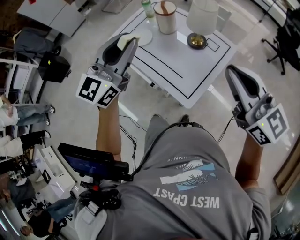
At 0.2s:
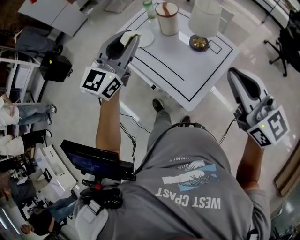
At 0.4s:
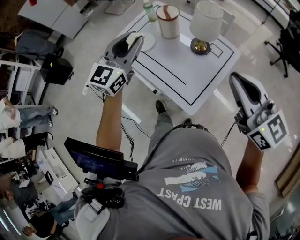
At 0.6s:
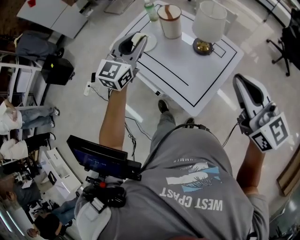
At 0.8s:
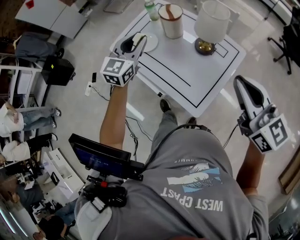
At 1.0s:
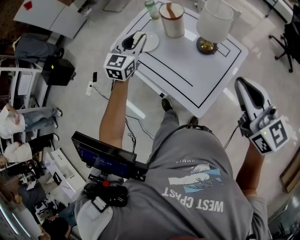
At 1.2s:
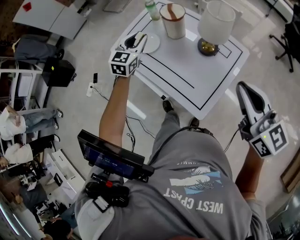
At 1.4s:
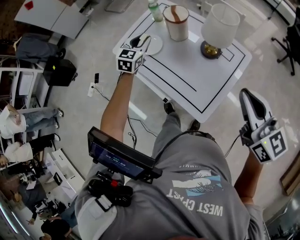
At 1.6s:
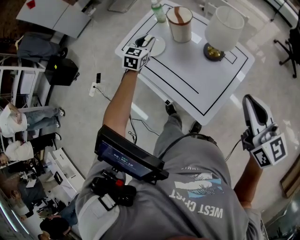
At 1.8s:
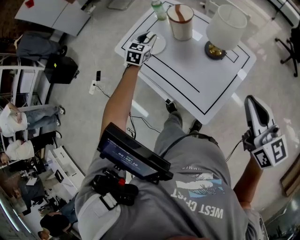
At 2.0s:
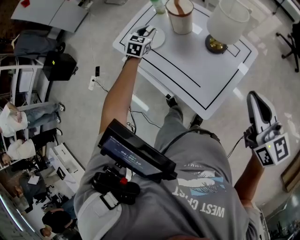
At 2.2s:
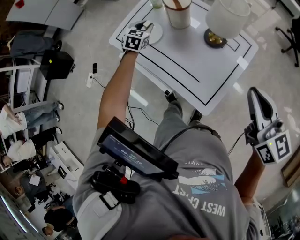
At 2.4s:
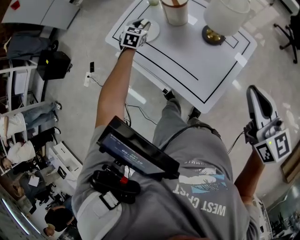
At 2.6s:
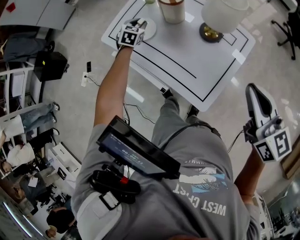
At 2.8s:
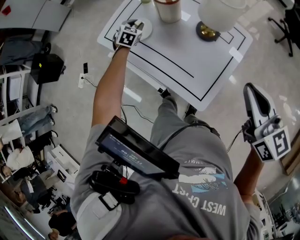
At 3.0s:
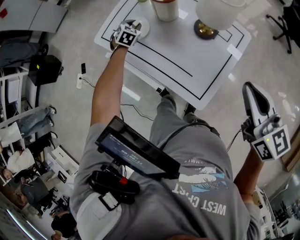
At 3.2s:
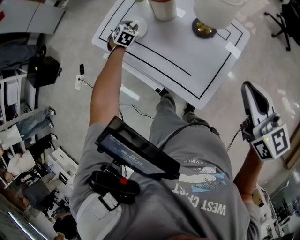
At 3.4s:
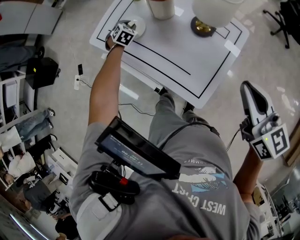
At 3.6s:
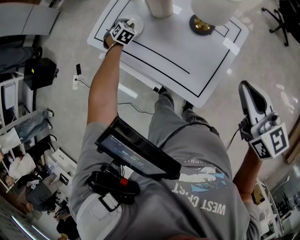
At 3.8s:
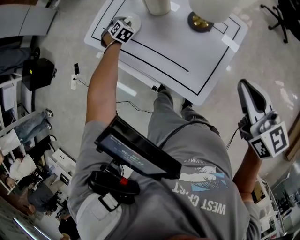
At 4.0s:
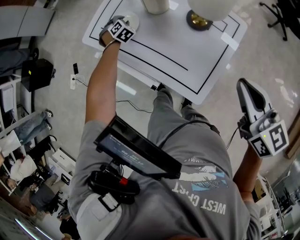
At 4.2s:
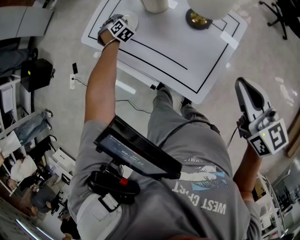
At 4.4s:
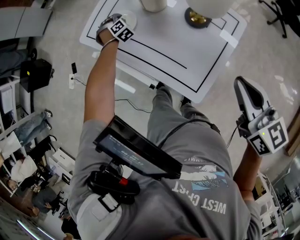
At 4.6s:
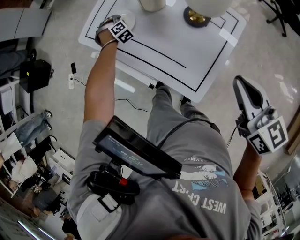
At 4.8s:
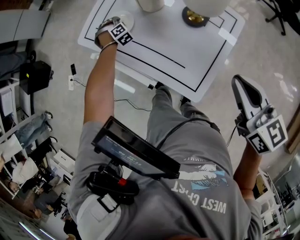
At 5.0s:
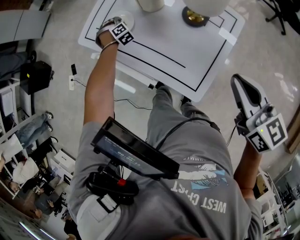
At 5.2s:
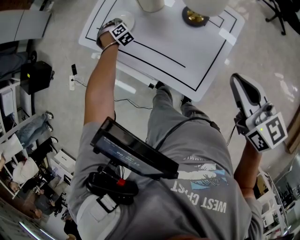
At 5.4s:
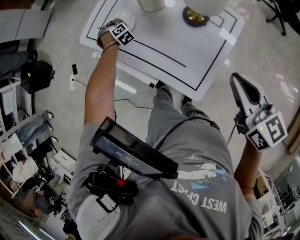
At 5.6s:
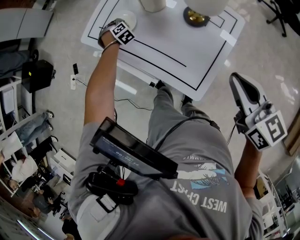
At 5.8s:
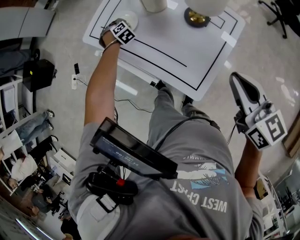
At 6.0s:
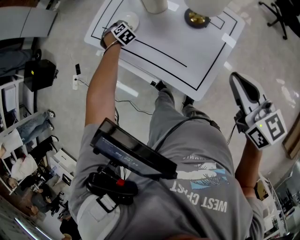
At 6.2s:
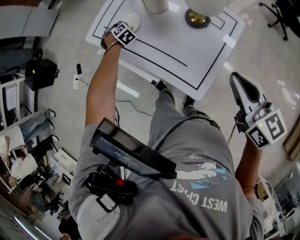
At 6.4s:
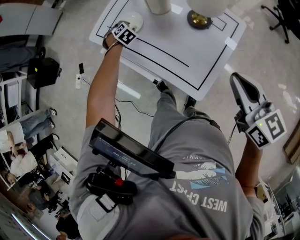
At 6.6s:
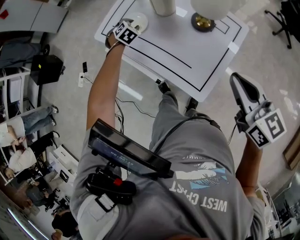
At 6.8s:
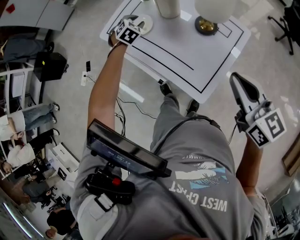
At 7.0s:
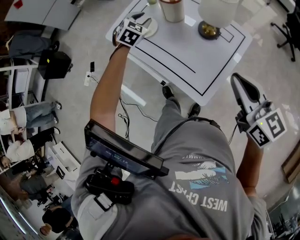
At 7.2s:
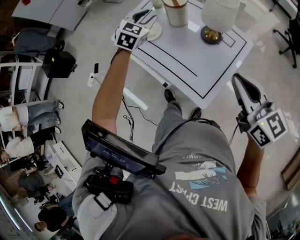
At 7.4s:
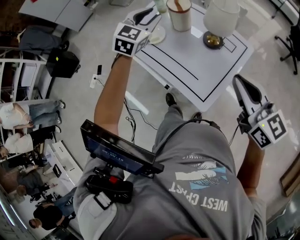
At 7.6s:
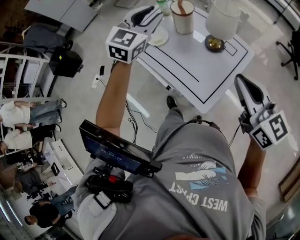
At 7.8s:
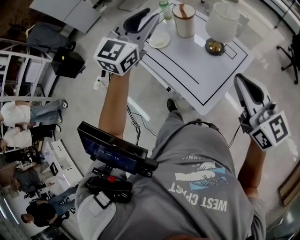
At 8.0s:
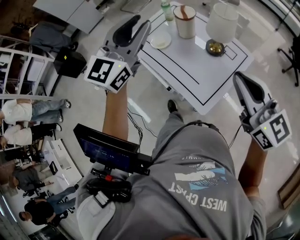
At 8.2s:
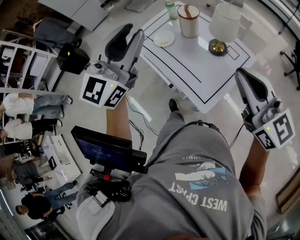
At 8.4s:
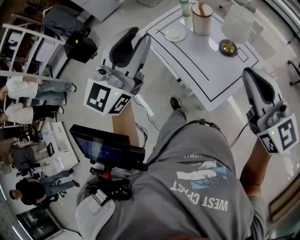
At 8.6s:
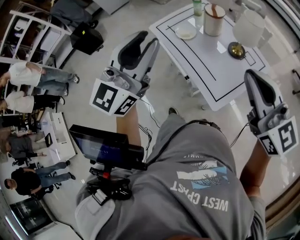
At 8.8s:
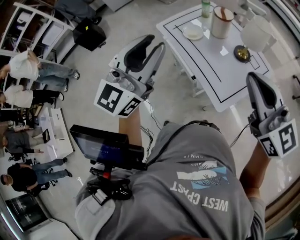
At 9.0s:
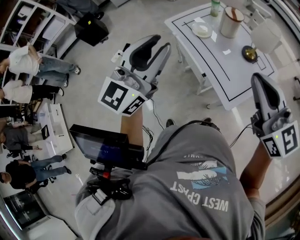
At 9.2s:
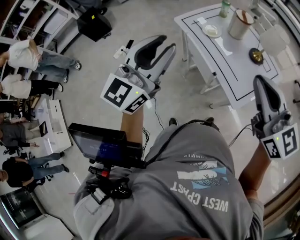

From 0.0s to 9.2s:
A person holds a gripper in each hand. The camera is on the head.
From 0.0s to 1.6s: The right gripper shifts about 10 cm downward and forward, while the left gripper travels downward and forward by some 40 cm, and points its fingers some 30 degrees further downward.
From 1.6s to 3.0s: The left gripper travels downward by approximately 15 cm, and swivels approximately 30 degrees.
From 3.0s to 4.6s: The left gripper moves downward, about 5 cm, and changes its angle by approximately 40 degrees.
From 4.6s to 6.2s: The left gripper goes some 5 cm backward.
From 6.2s to 7.6s: The right gripper goes approximately 10 cm upward; the left gripper shifts about 40 cm upward, and points its fingers roughly 50 degrees further upward.
From 7.6s to 9.2s: The right gripper is displaced to the left and backward by about 25 cm, while the left gripper heads backward and to the left, covering some 40 cm, and rotates some 30 degrees.

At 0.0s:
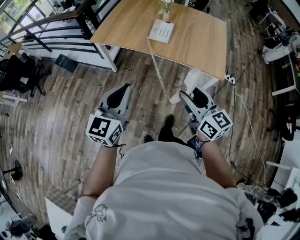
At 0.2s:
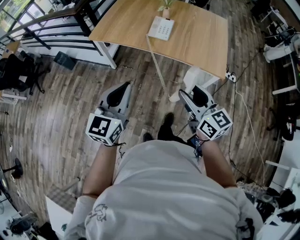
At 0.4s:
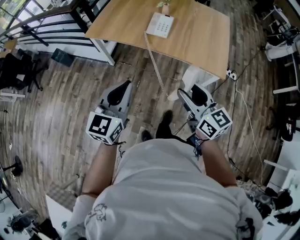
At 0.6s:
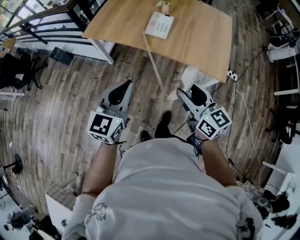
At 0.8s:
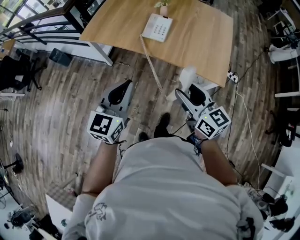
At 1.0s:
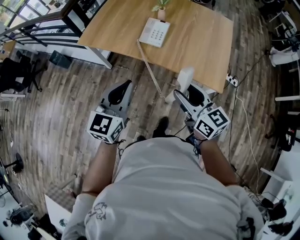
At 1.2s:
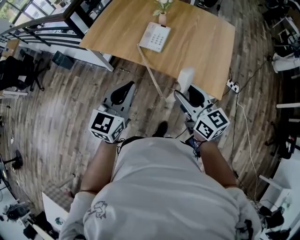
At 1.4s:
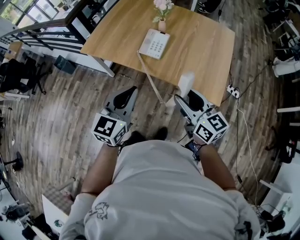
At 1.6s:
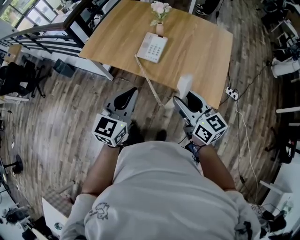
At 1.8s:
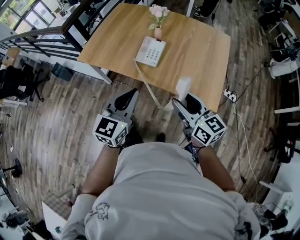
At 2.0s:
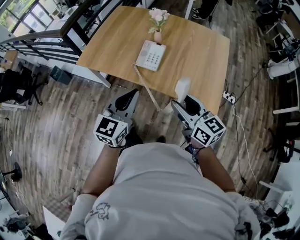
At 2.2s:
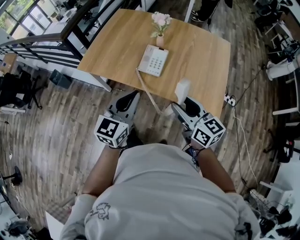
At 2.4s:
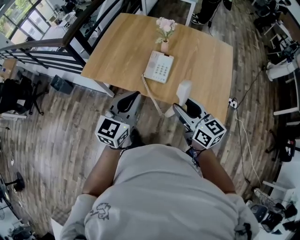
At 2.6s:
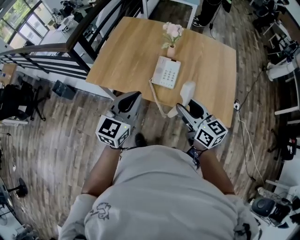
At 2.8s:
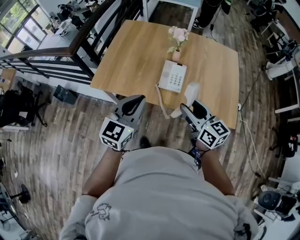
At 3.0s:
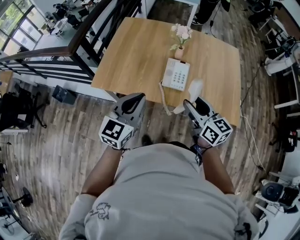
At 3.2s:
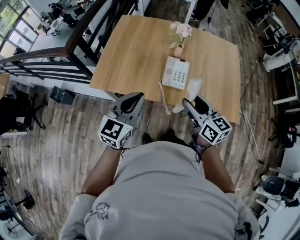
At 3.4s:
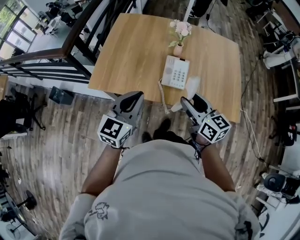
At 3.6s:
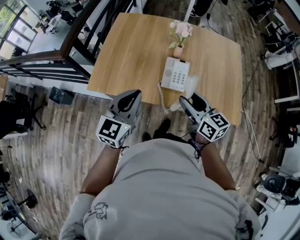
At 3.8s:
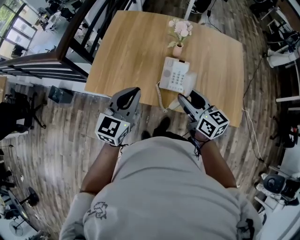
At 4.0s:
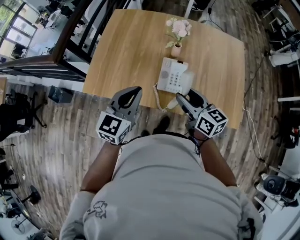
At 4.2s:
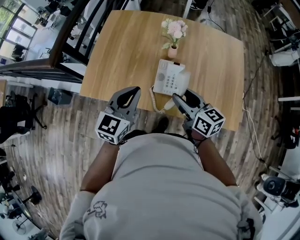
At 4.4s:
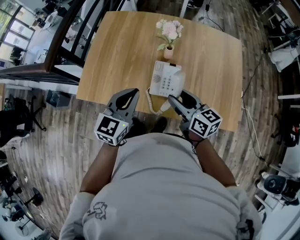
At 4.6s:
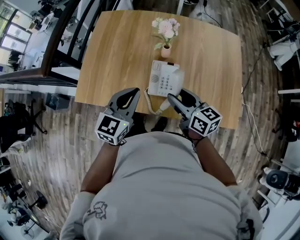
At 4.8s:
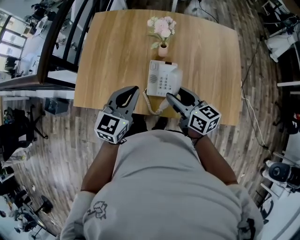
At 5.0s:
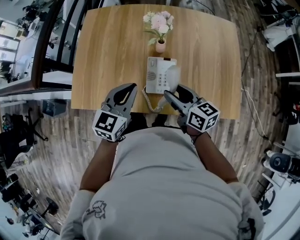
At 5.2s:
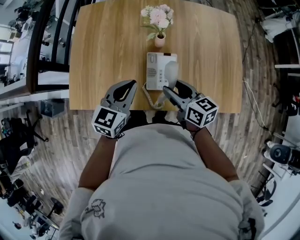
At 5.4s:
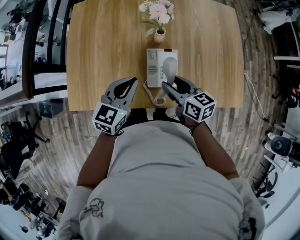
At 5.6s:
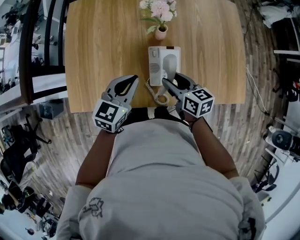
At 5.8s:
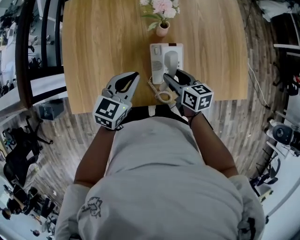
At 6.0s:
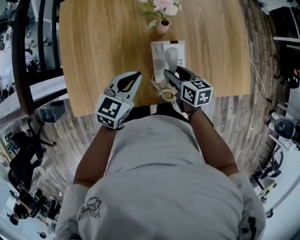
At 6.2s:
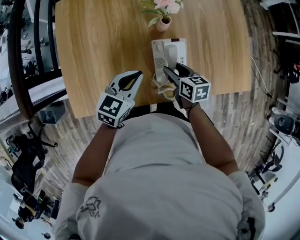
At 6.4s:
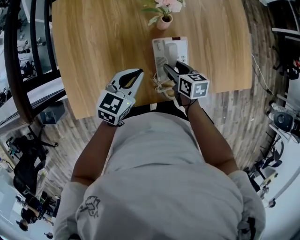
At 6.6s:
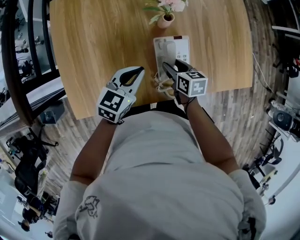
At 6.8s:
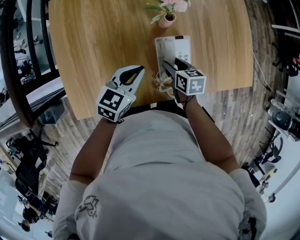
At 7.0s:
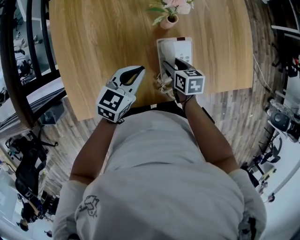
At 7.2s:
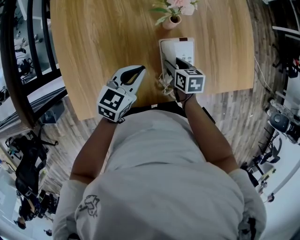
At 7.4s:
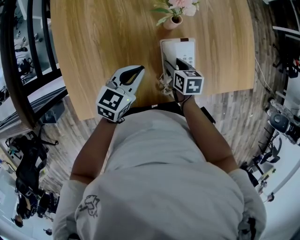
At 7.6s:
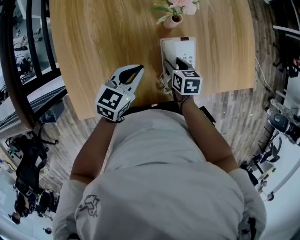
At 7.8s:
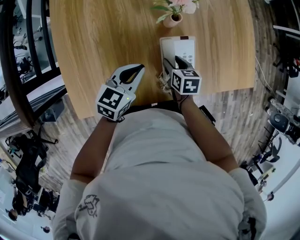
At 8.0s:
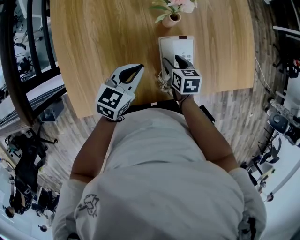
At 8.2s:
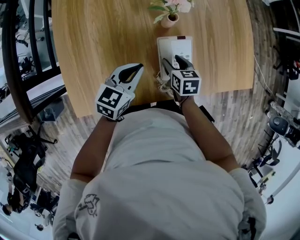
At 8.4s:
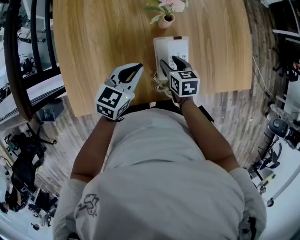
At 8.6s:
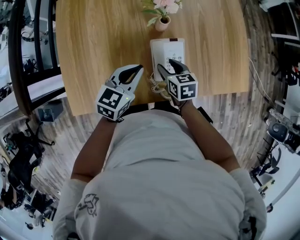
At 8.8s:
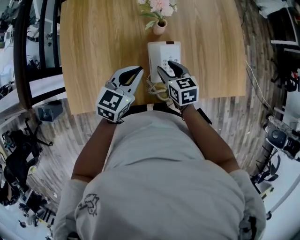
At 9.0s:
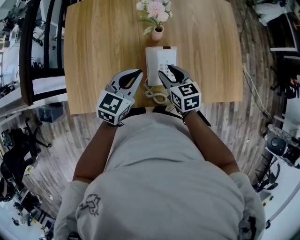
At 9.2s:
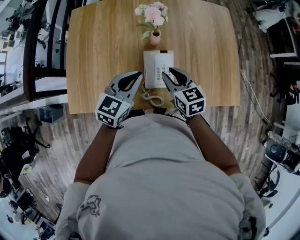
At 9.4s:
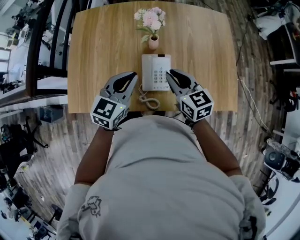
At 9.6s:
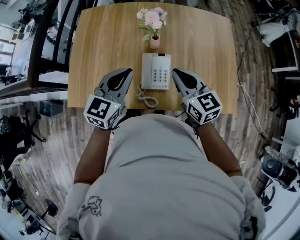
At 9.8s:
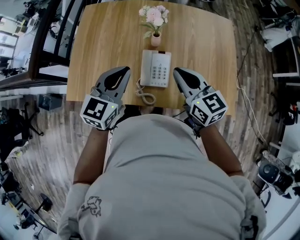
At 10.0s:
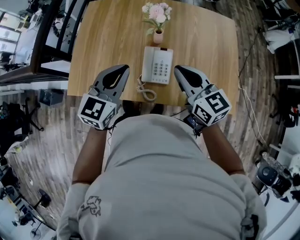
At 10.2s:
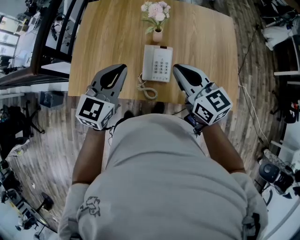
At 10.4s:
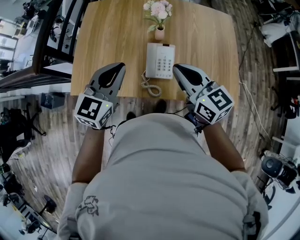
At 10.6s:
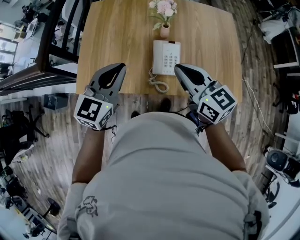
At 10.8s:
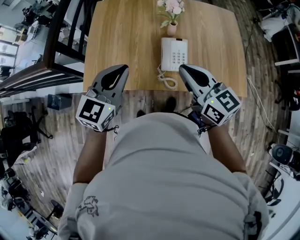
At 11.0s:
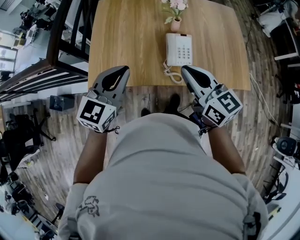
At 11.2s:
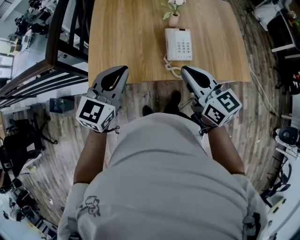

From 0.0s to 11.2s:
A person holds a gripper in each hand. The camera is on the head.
From 0.0s to 1.6s: Both grippers travel together forward and to the right, some 25 cm.
From 1.6s to 3.2s: The grippers both shift to the left and forward by about 25 cm.
From 3.2s to 4.8s: The right gripper travels forward and downward by roughly 15 cm. Meanwhile the left gripper moves forward and to the right, about 20 cm.
From 4.8s to 6.4s: Both grippers travel together downward and forward, some 20 cm. The right gripper swivels roughly 40 degrees, while the left gripper rotates roughly 30 degrees.
From 6.4s to 8.0s: The grippers stay close to where they were, moving slightly.
From 8.0s to 9.6s: The left gripper goes about 20 cm upward and to the right, and swivels some 30 degrees. The right gripper travels upward by roughly 25 cm, tips its fingers upward by about 30 degrees, and closes up.
From 9.6s to 11.2s: The left gripper is displaced to the left and backward by roughly 25 cm; the right gripper travels backward and to the left by some 25 cm.

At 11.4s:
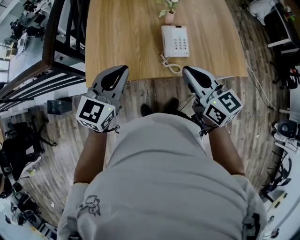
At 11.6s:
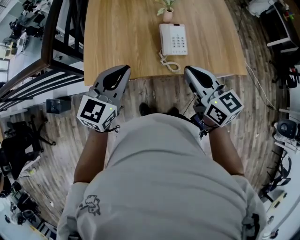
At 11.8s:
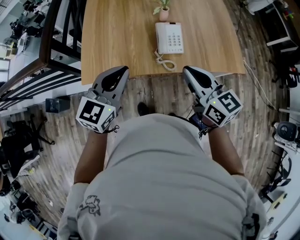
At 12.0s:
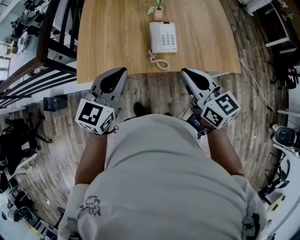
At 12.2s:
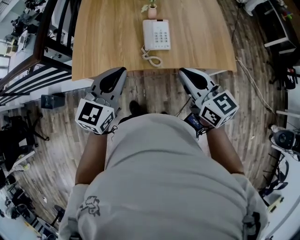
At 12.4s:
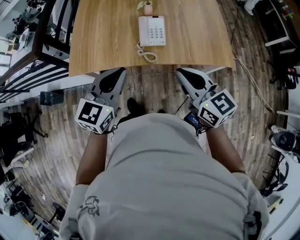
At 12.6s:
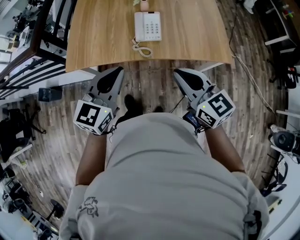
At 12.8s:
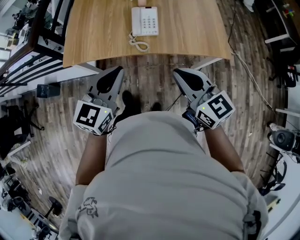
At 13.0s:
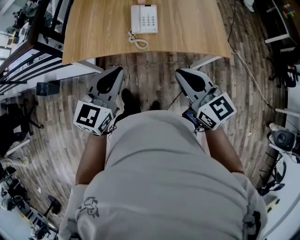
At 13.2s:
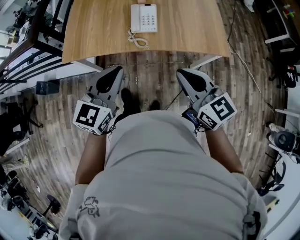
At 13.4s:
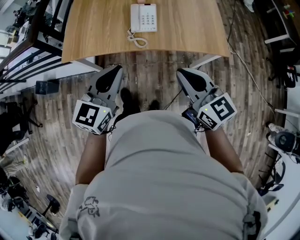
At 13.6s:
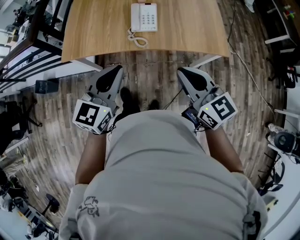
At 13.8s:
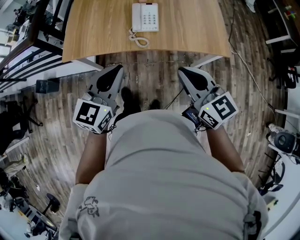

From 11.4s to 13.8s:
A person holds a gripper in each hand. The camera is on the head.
From 11.4s to 12.6s: Both grippers move to the right and backward, some 20 cm.
From 12.6s to 13.8s: The right gripper shifts by approximately 5 cm.

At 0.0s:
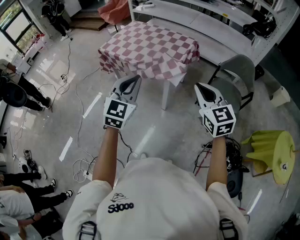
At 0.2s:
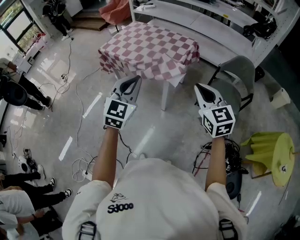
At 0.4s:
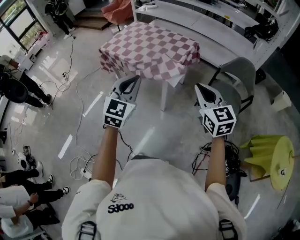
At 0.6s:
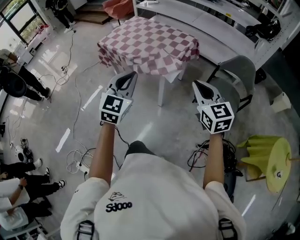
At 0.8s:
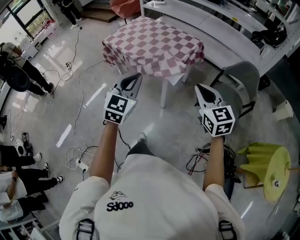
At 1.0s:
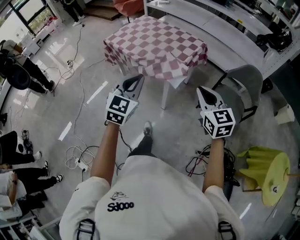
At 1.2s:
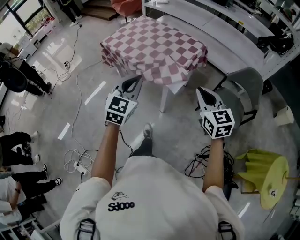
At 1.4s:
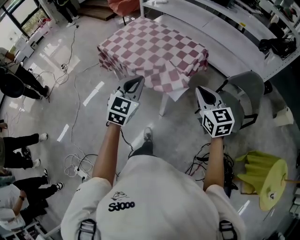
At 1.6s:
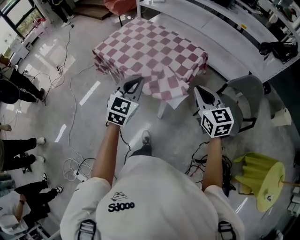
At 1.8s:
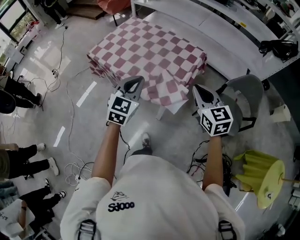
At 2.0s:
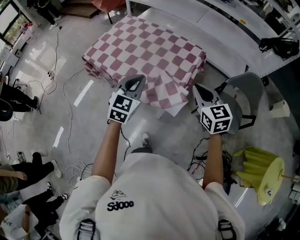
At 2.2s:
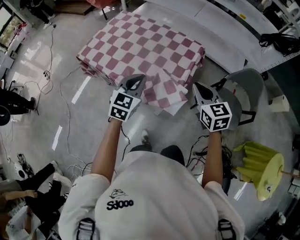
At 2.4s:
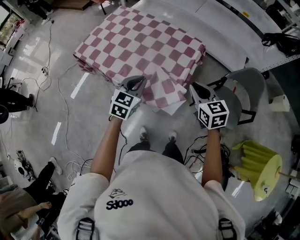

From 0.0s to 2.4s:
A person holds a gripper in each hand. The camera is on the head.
From 0.0s to 1.2s: The right gripper moves forward, downward and to the right, roughly 15 cm, while the left gripper moves forward and downward, approximately 10 cm.
From 1.2s to 2.4s: The right gripper goes some 25 cm forward. Meanwhile the left gripper moves forward and downward, about 30 cm, and swivels approximately 20 degrees.
